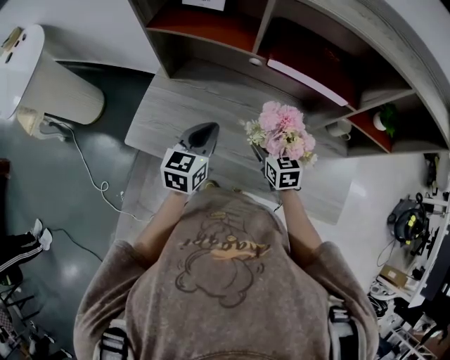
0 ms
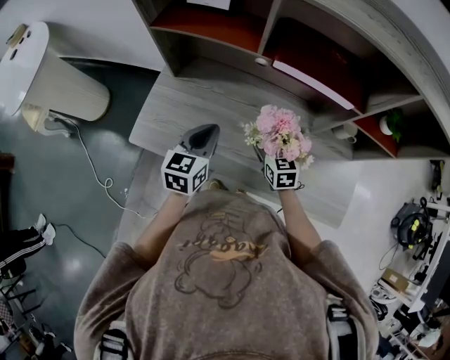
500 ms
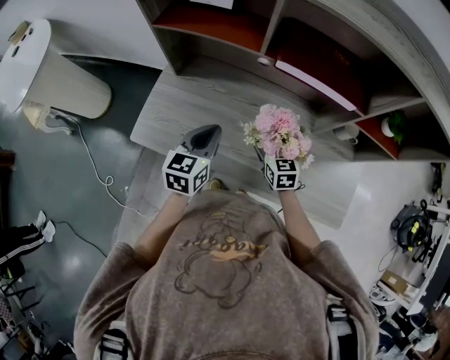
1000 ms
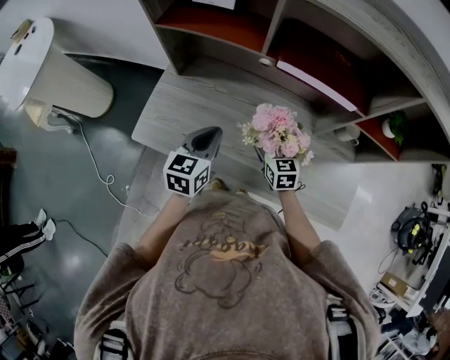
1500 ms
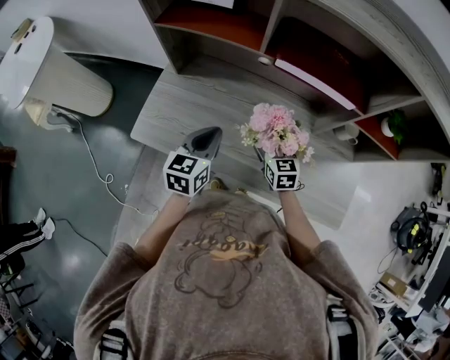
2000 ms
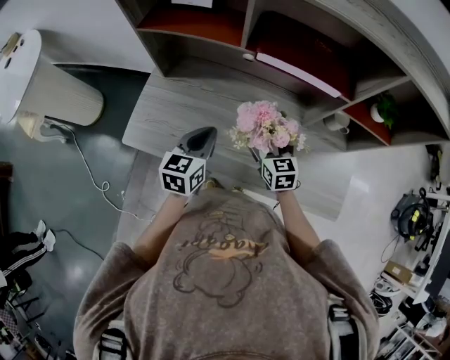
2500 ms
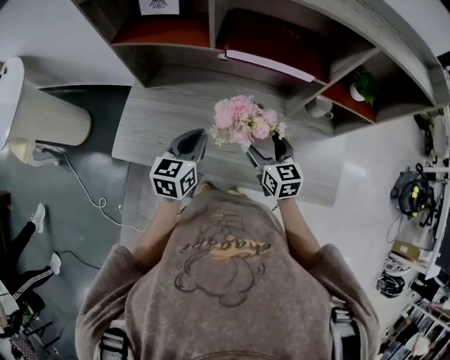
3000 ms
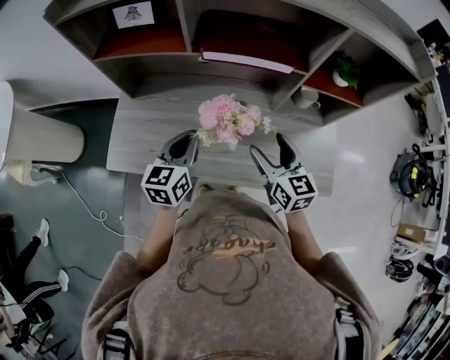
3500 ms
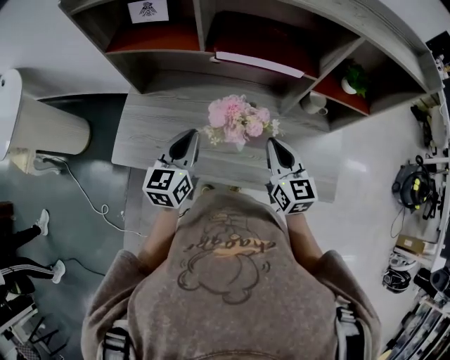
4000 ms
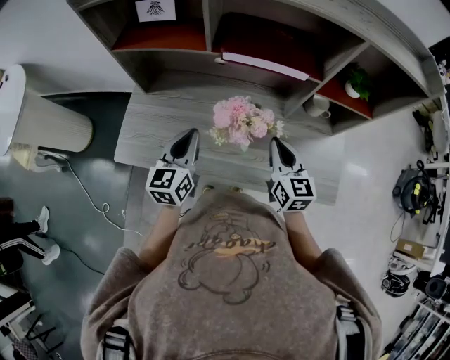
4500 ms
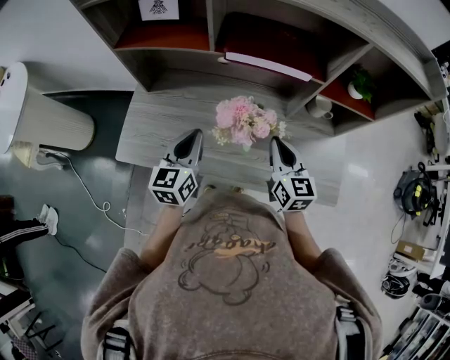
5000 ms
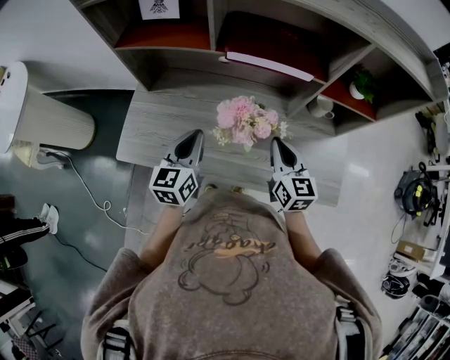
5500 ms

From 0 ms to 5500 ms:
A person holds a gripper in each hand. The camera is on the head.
From 0 ms to 2000 ms: The grippers make only small movements.
From 2000 ms to 3500 ms: The right gripper goes roughly 20 cm upward, to the right and backward; the left gripper heads to the right, covering some 5 cm.
From 3500 ms to 5500 ms: The right gripper closes up.

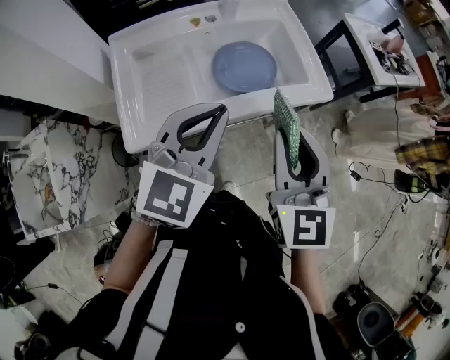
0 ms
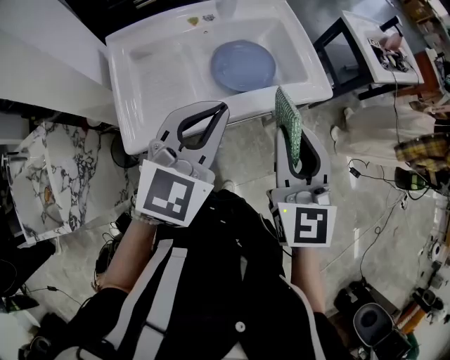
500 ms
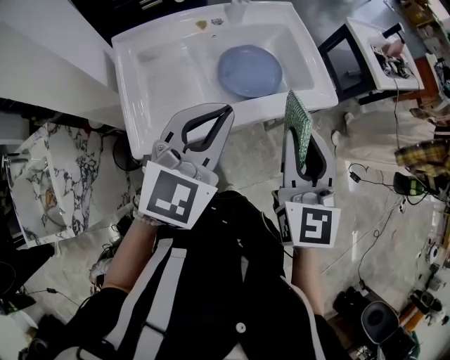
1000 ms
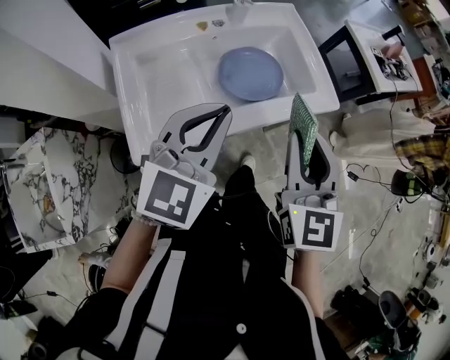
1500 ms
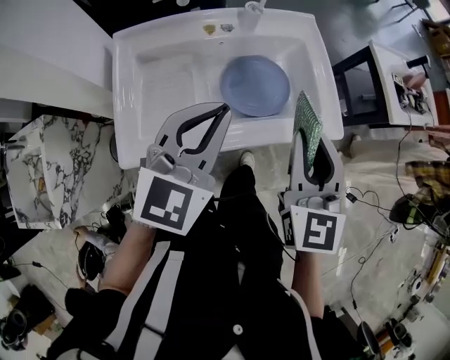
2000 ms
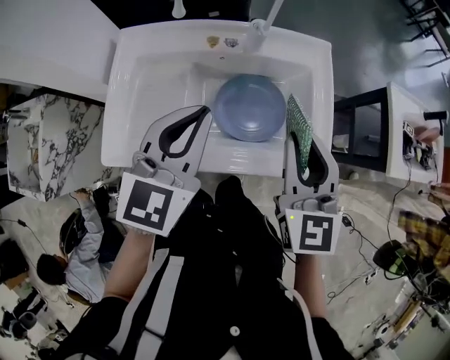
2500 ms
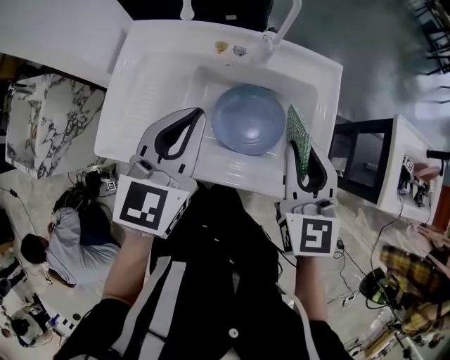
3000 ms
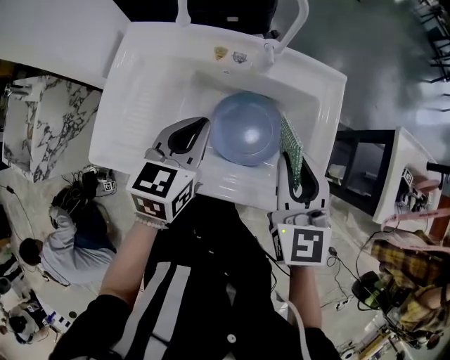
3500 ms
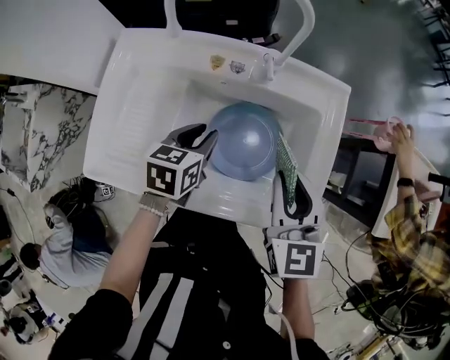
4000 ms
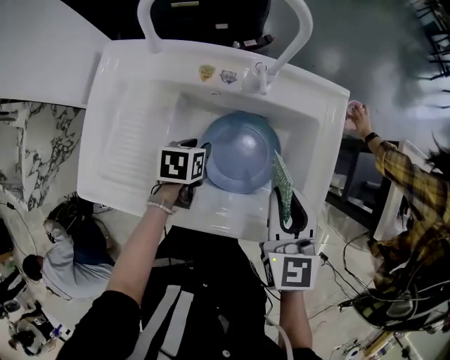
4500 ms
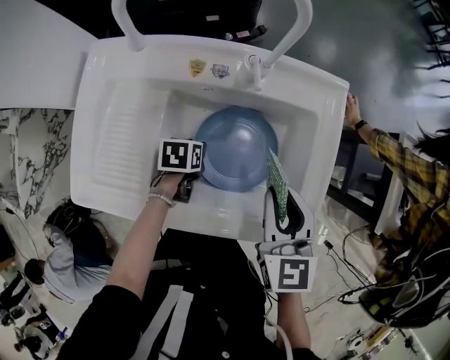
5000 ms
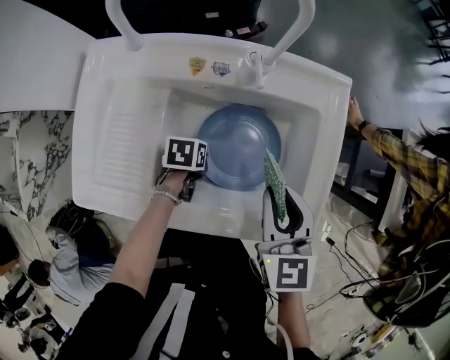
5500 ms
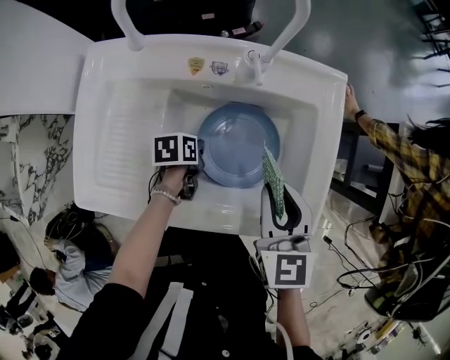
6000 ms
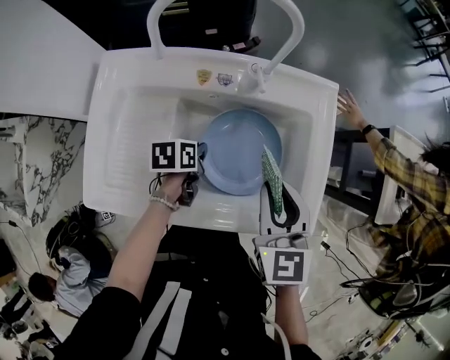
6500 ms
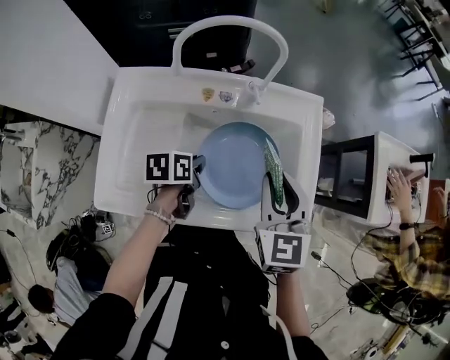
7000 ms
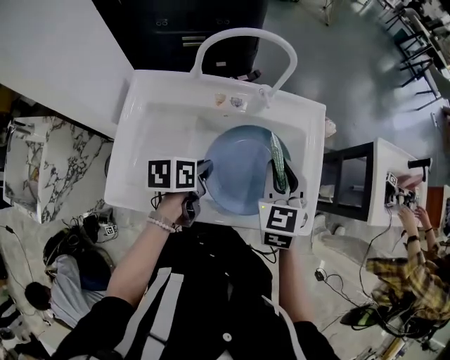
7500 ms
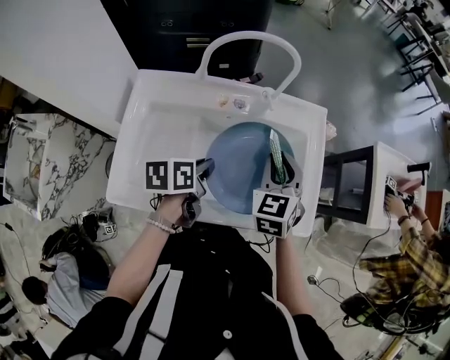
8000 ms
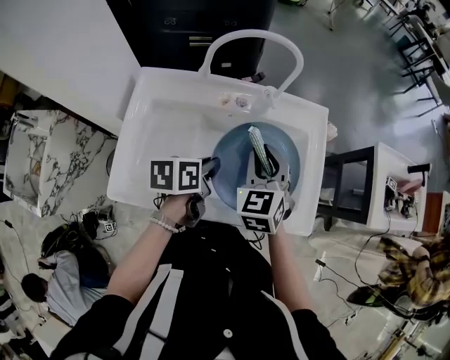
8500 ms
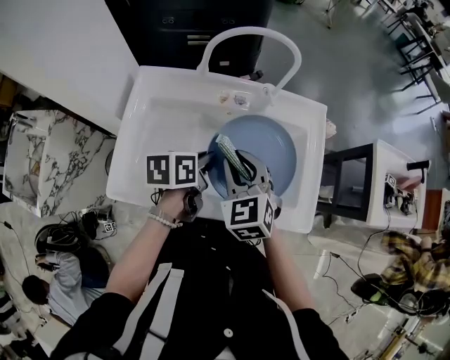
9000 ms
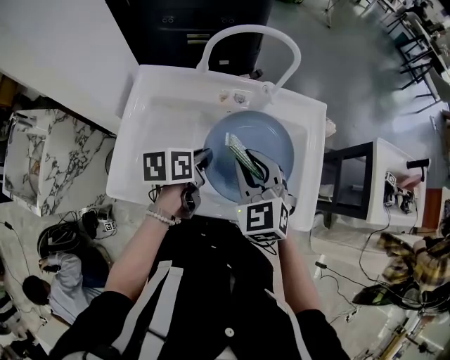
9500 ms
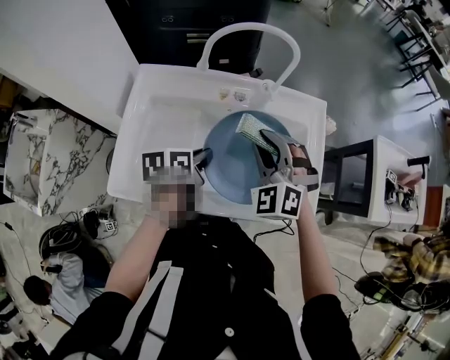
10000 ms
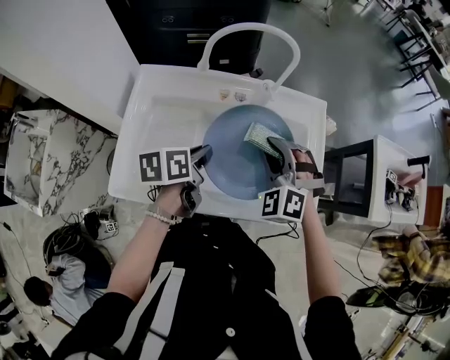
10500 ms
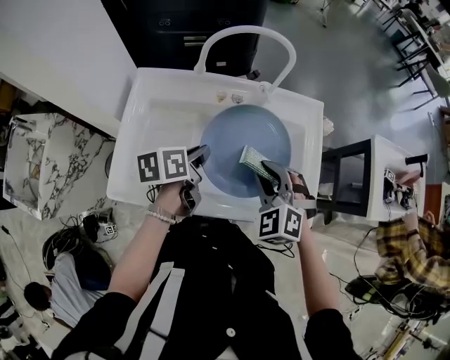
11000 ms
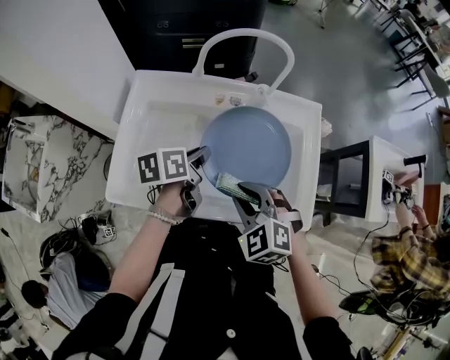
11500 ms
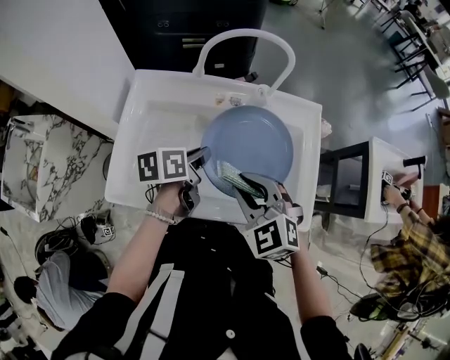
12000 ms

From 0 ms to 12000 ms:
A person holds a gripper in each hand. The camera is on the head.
From 0 ms to 2000 ms: The grippers both shift forward by roughly 10 cm.
From 2000 ms to 4000 ms: The left gripper is displaced downward by roughly 20 cm, tips its fingers downward by roughly 30 degrees, and opens its fingers; the right gripper ends up approximately 20 cm from where it was, and swivels some 30 degrees.
From 4000 ms to 6000 ms: The left gripper goes about 15 cm downward, rotates roughly 30 degrees, and closes its fingers.
From 6000 ms to 8000 ms: The right gripper changes place by about 5 cm, and swivels approximately 20 degrees. Meanwhile the left gripper moves upward, about 20 cm, and changes its angle by about 20 degrees.
From 8000 ms to 10000 ms: The right gripper is displaced to the left by some 5 cm, and rotates around the line of its fingers by approximately 40 degrees, counterclockwise from behind.
From 10000 ms to 12000 ms: The right gripper moves backward, some 10 cm, and swivels some 30 degrees.

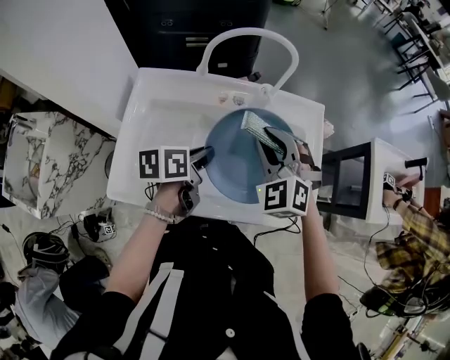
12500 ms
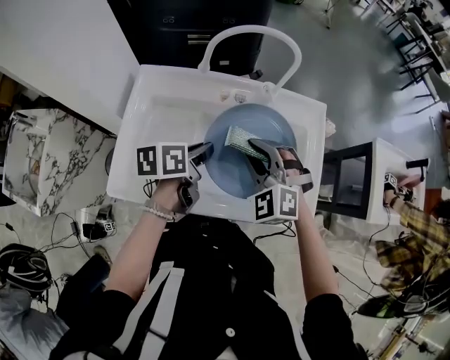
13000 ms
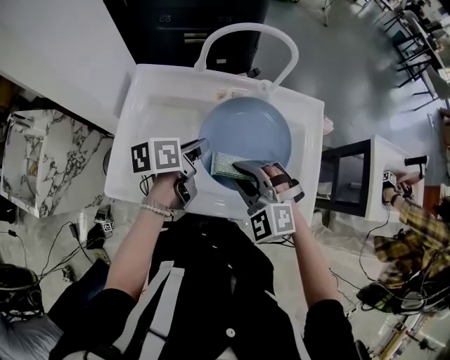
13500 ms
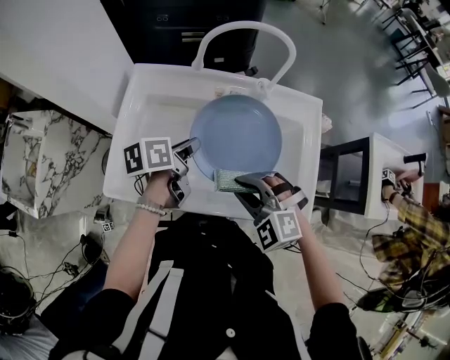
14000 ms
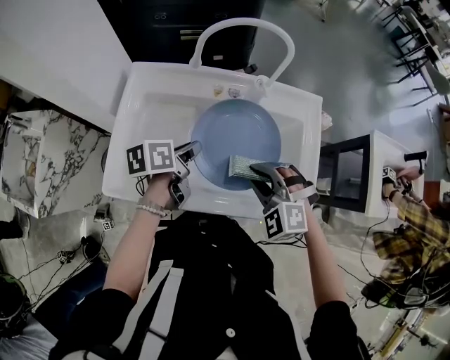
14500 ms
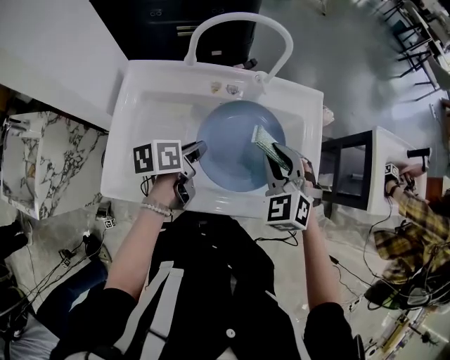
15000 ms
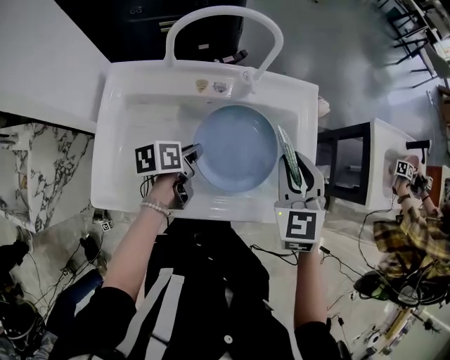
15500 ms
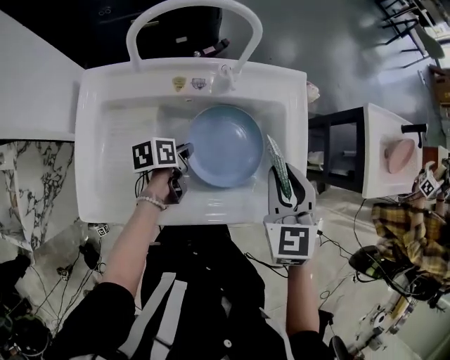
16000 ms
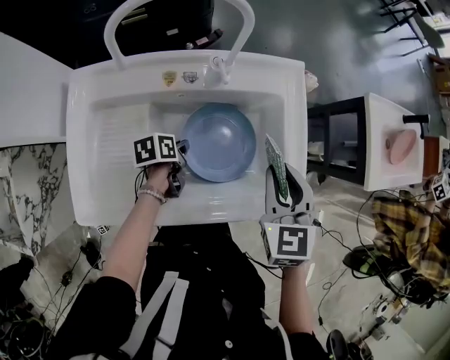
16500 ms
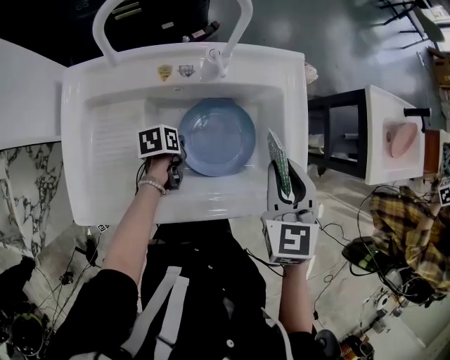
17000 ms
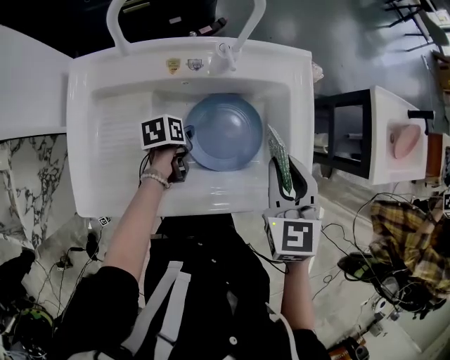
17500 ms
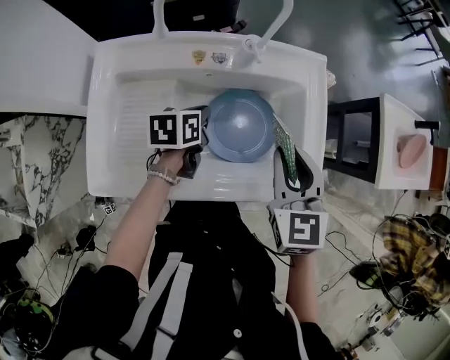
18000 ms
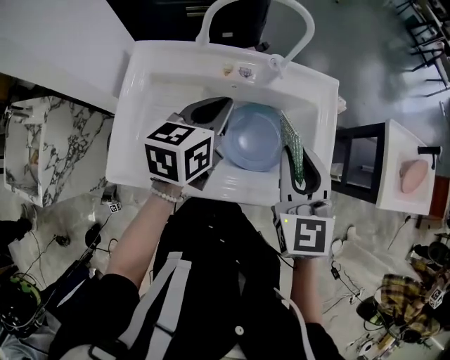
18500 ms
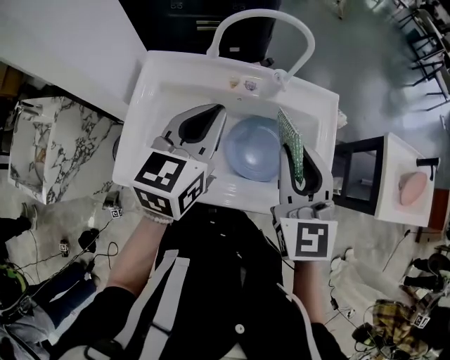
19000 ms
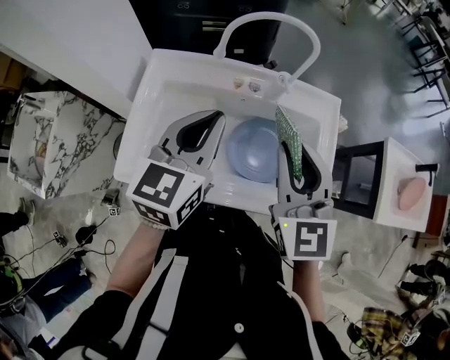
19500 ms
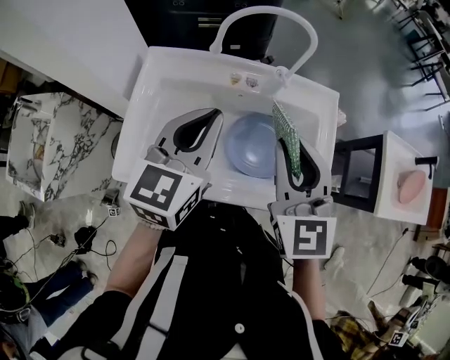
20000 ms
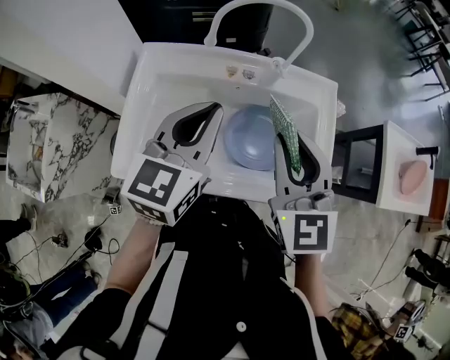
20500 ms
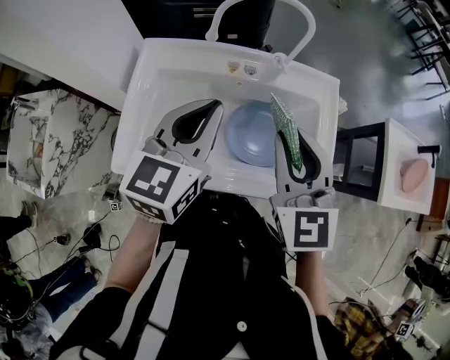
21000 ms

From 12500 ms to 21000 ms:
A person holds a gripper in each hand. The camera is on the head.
From 12500 ms to 14500 ms: The right gripper heads backward and downward, covering some 10 cm, and turns by roughly 20 degrees.
From 14500 ms to 16500 ms: The right gripper changes place by about 15 cm, and rotates around the line of its fingers by roughly 60 degrees, clockwise from behind. The left gripper shifts roughly 20 cm downward, and swivels roughly 20 degrees.
From 16500 ms to 19000 ms: The left gripper heads upward, covering about 35 cm, tilts its fingers some 40 degrees upward, and opens, then closes once more, while the right gripper shifts some 15 cm upward, and rotates about 30 degrees.
From 19000 ms to 21000 ms: The grippers move only a little.

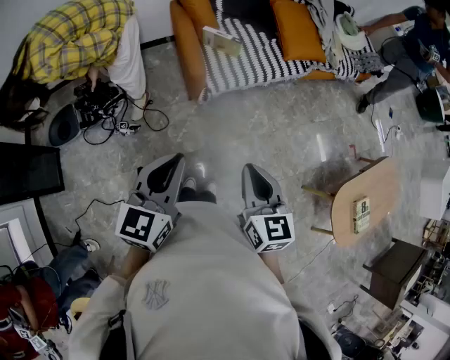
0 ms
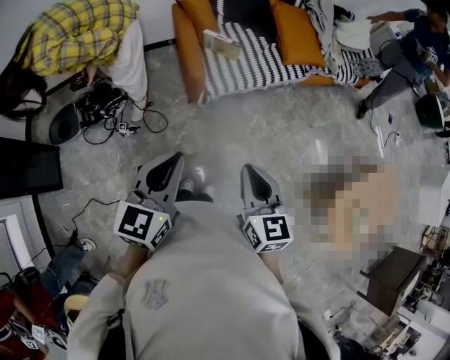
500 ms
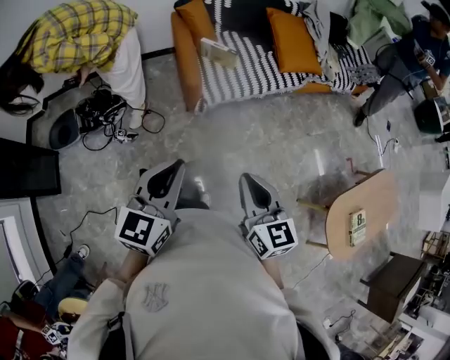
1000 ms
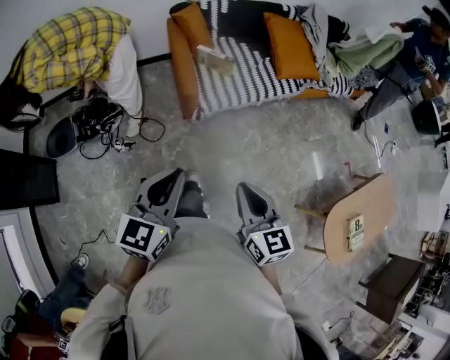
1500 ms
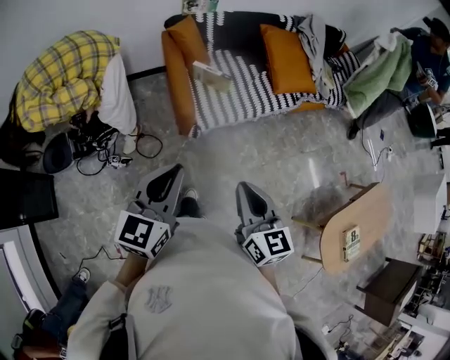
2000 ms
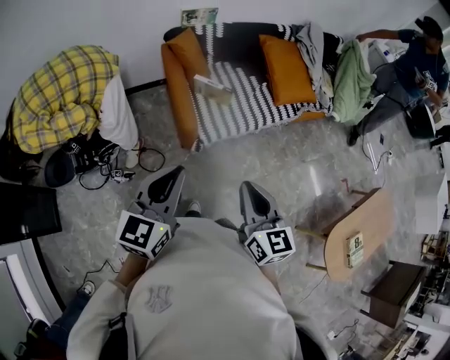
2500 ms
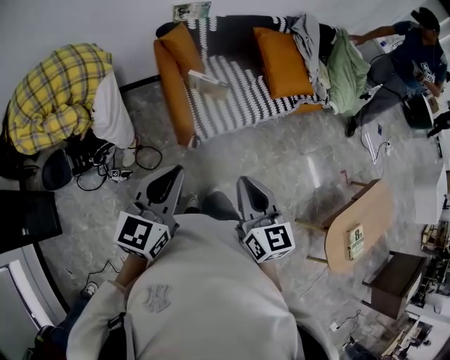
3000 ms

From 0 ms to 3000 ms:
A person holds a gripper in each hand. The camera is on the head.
From 0 ms to 1500 ms: The grippers move only a little.
From 1500 ms to 3000 ms: The two grippers go roughly 15 cm forward.
